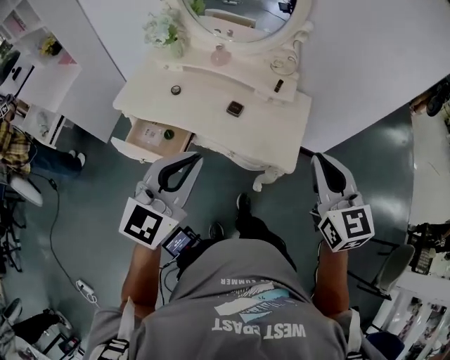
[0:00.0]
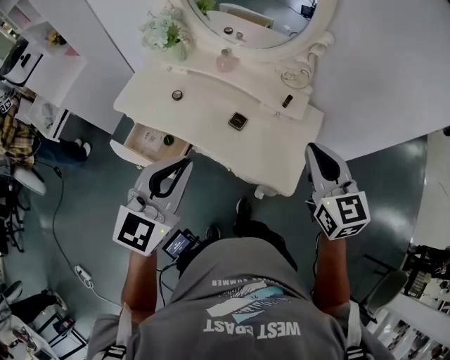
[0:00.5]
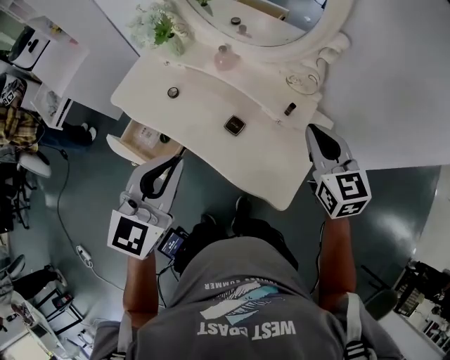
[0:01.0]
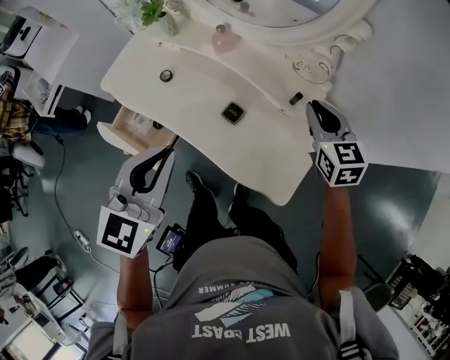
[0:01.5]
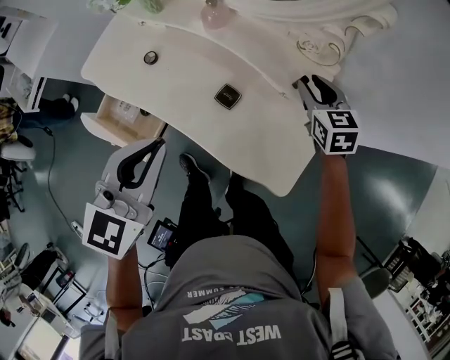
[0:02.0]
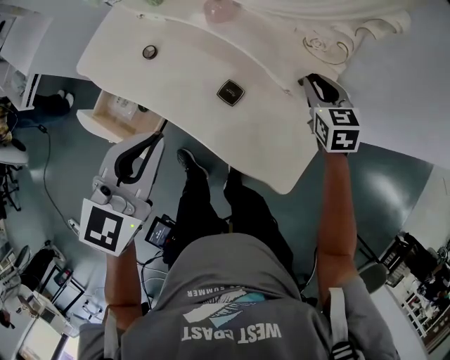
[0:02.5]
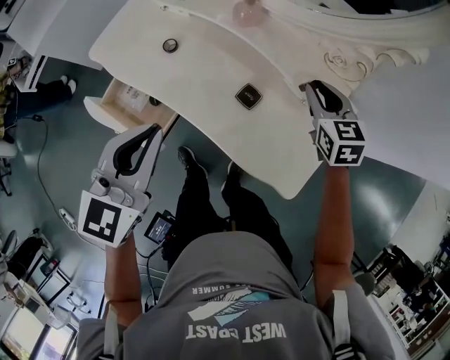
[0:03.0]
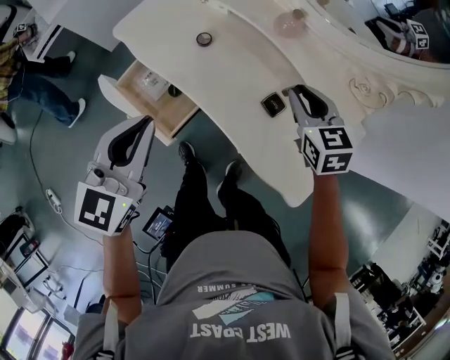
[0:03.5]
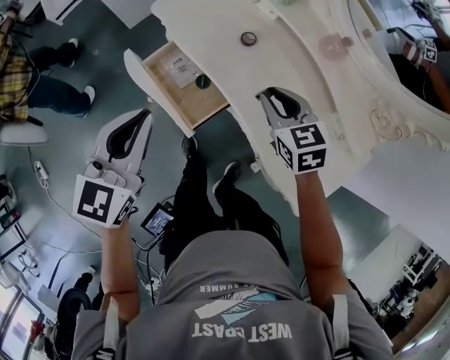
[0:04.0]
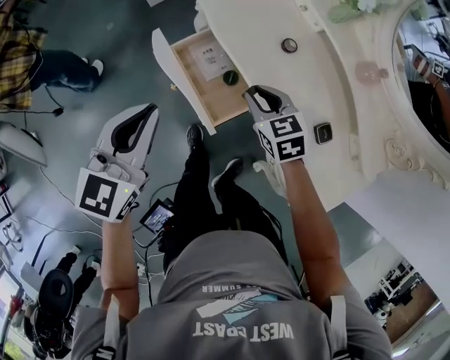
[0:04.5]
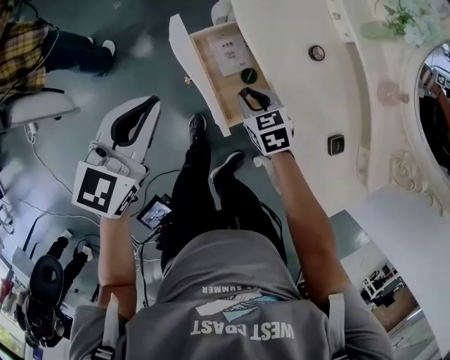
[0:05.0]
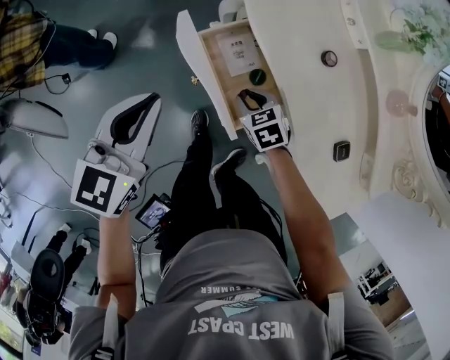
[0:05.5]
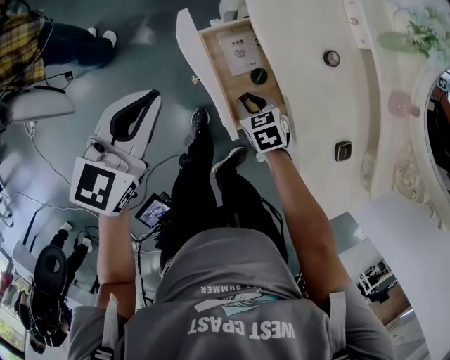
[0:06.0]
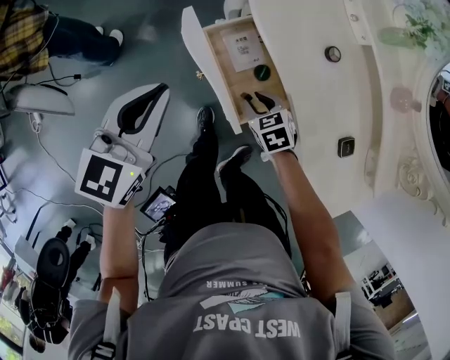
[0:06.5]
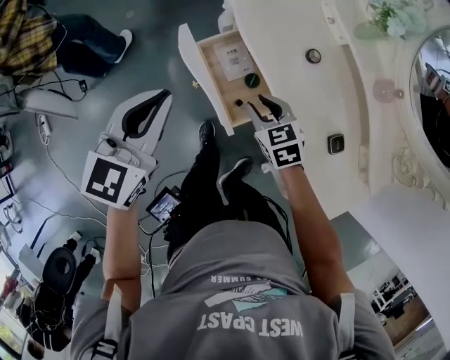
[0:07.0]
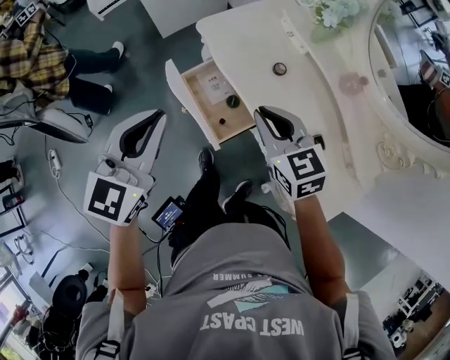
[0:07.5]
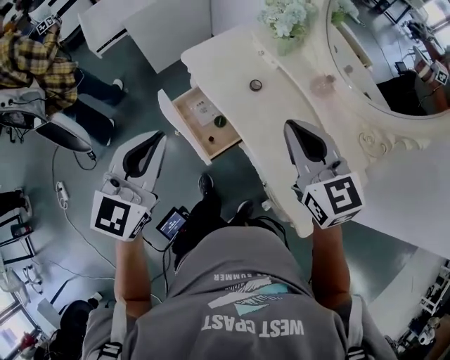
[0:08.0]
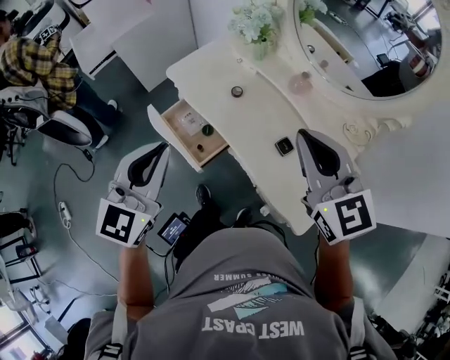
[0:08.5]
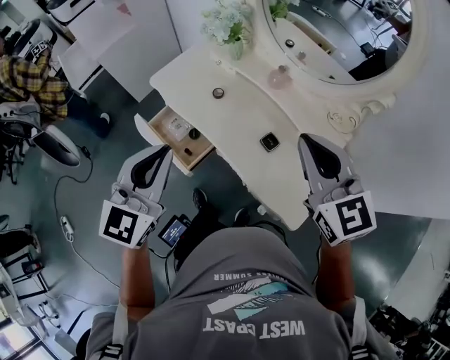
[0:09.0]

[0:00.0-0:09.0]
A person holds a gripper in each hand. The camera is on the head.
0:00.0 to 0:02.0: The left gripper travels forward and downward by some 25 cm, and swivels about 20 degrees. The right gripper moves forward and downward, about 50 cm, turns by roughly 20 degrees, and opens up.
0:02.0 to 0:04.5: The left gripper shifts by about 40 cm, and rotates some 40 degrees; the right gripper moves some 50 cm, and rotates approximately 40 degrees.
0:04.5 to 0:07.0: The right gripper moves to the left, approximately 5 cm, and moves roughly 15 cm downward and comes back.
0:07.0 to 0:09.0: The right gripper moves upward and to the right, some 50 cm, tilts its fingers some 40 degrees upward, and closes up; the left gripper travels to the right, upward and backward by about 30 cm, and swivels some 20 degrees.

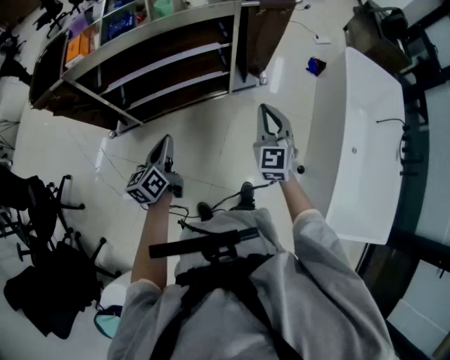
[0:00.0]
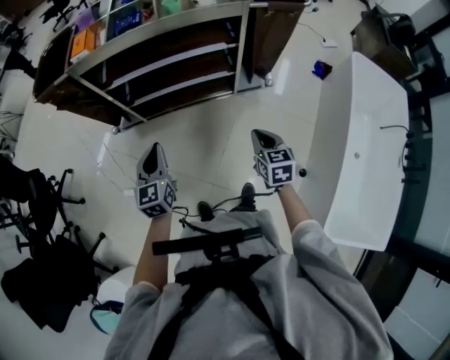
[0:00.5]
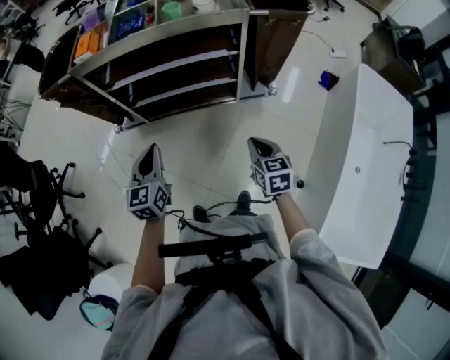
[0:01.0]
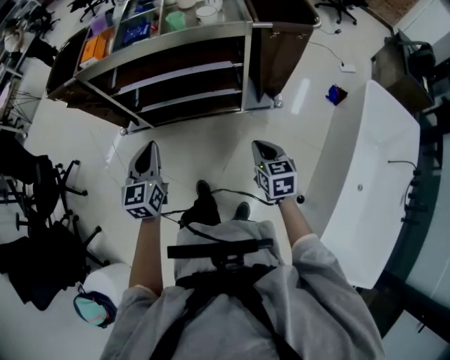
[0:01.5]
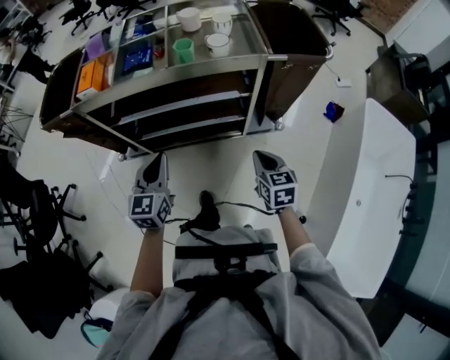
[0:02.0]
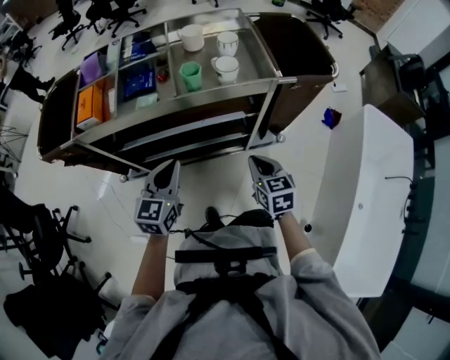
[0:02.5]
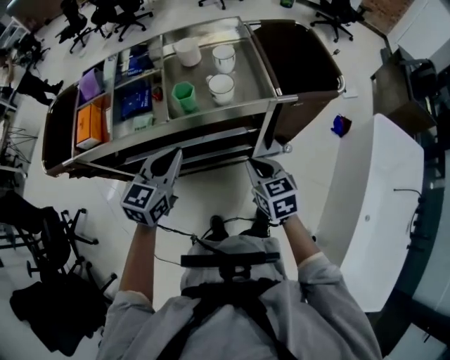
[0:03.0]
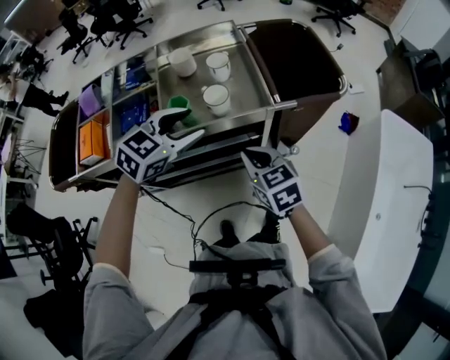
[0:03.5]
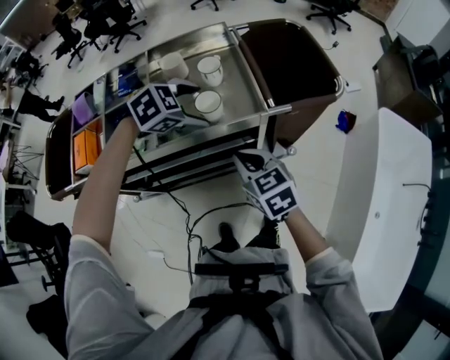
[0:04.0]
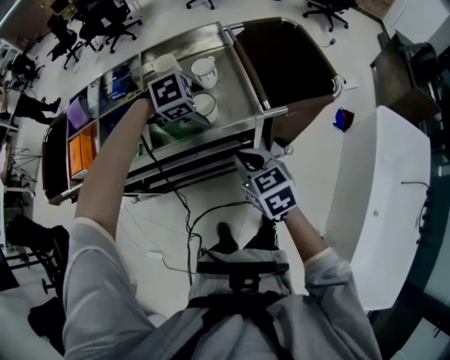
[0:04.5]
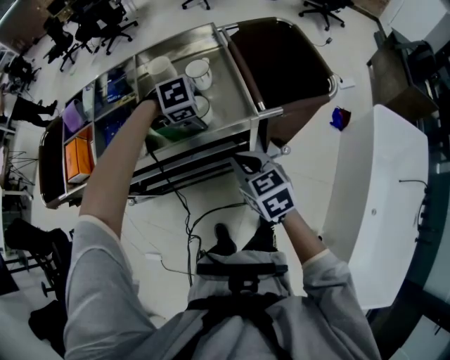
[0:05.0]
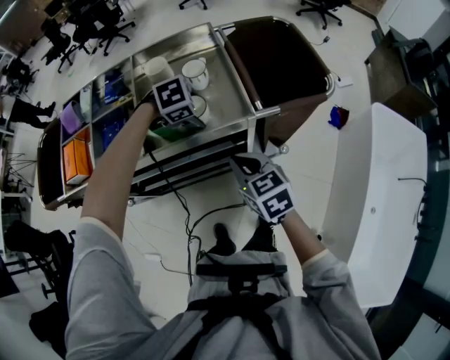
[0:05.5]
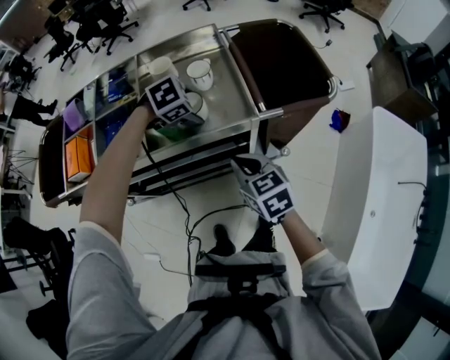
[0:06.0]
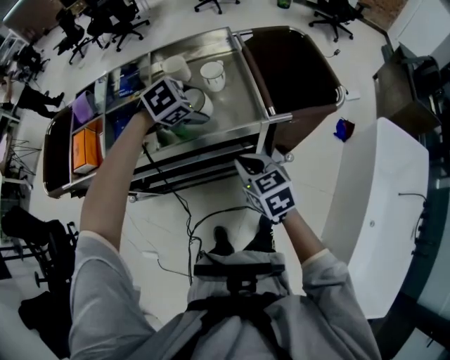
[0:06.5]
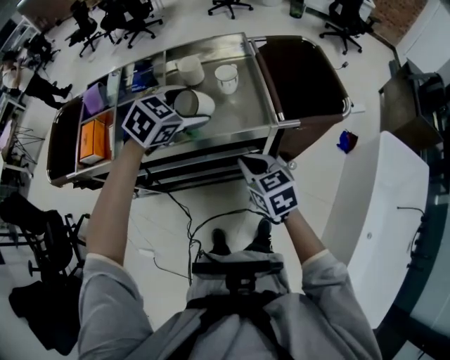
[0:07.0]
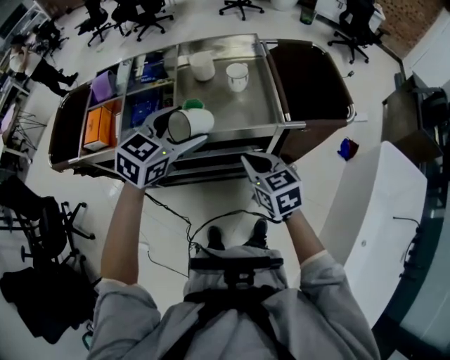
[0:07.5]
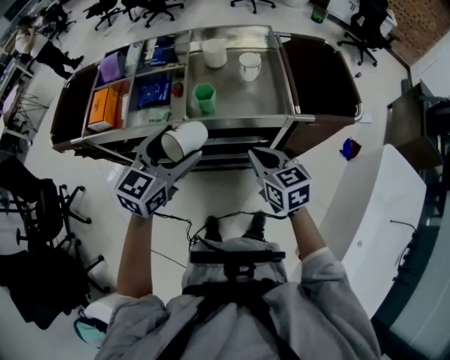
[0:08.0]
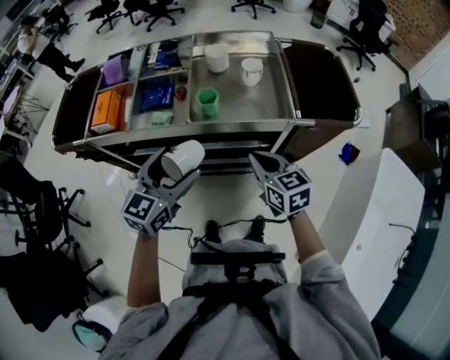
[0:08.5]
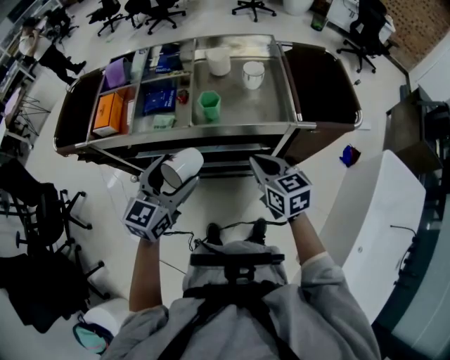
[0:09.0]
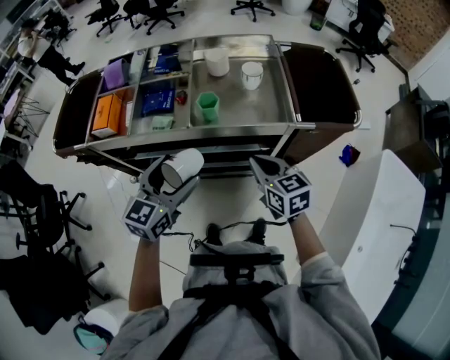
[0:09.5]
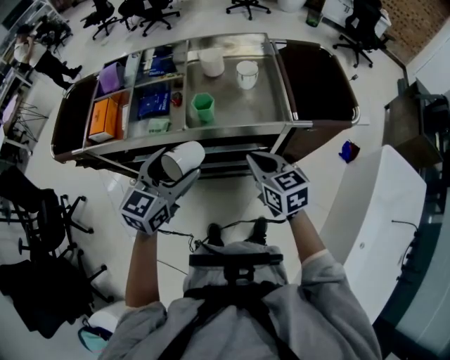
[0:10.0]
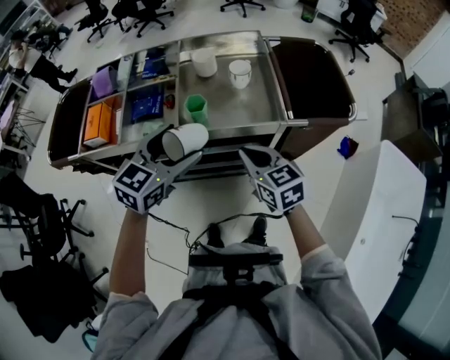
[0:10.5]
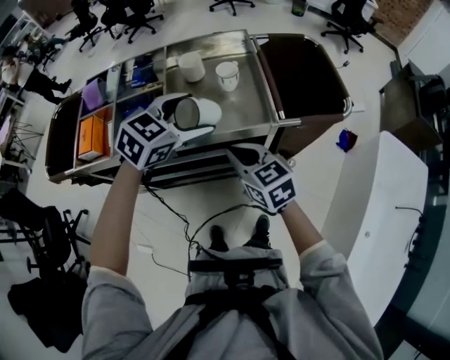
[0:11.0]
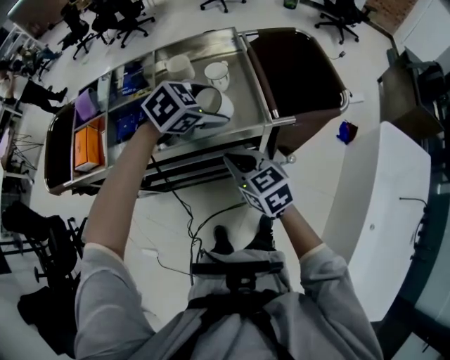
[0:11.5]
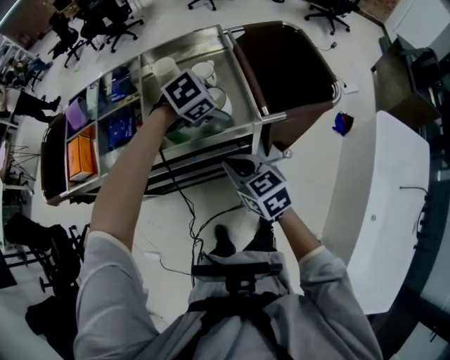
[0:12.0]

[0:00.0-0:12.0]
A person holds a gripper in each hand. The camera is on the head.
0:00.0 to 0:02.0: The left gripper heads forward and upward, covering roughly 15 cm, and changes its angle by about 30 degrees. Meanwhile the right gripper goes about 15 cm forward and downward, and rotates roughly 40 degrees.
0:02.0 to 0:04.0: The left gripper heads forward, covering some 35 cm, points its fingers some 40 degrees further downward, and opens its fingers; the right gripper heads forward and upward, covering some 25 cm.
0:04.0 to 0:06.0: The left gripper heads downward, covering roughly 5 cm.
0:06.0 to 0:08.0: The left gripper heads backward, upward and to the left, covering some 25 cm, and points its fingers roughly 50 degrees further upward.
0:10.0 to 0:12.0: The left gripper is displaced forward and to the right by roughly 30 cm, and tips its fingers downward by about 50 degrees.

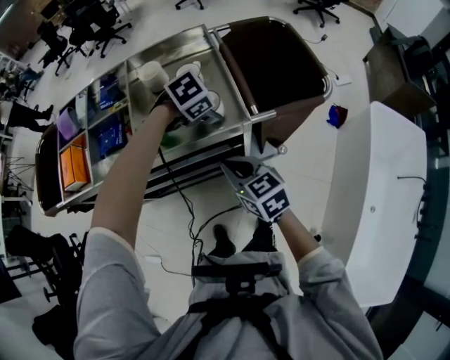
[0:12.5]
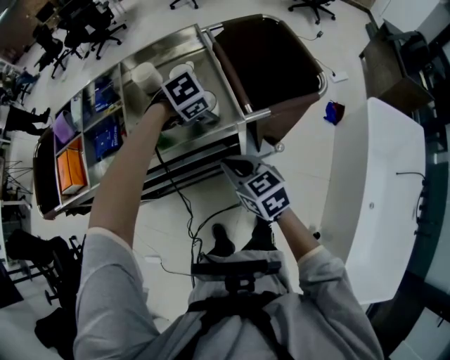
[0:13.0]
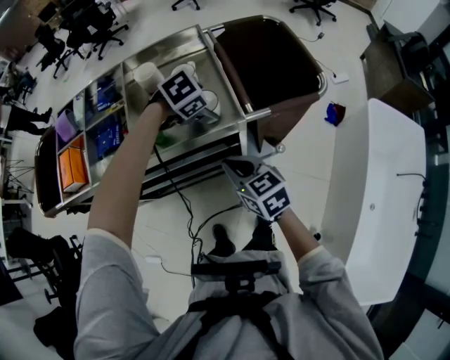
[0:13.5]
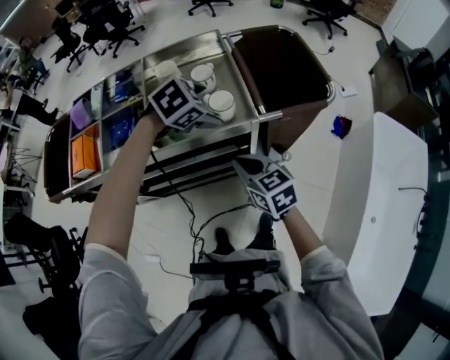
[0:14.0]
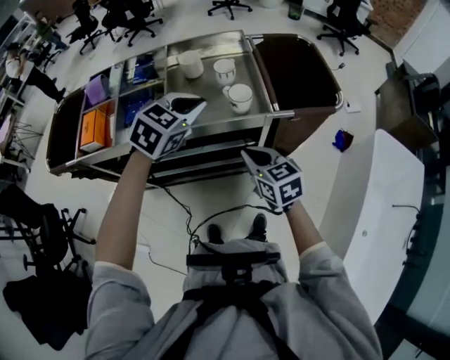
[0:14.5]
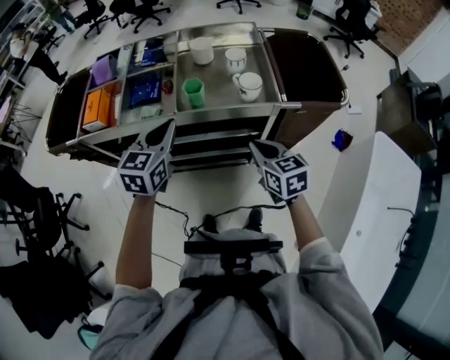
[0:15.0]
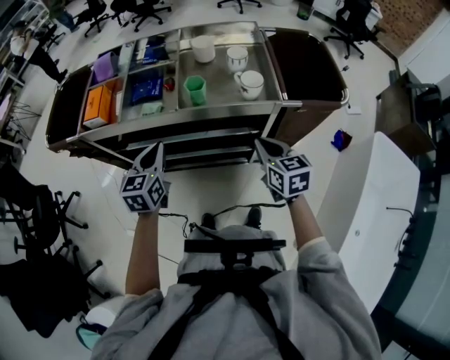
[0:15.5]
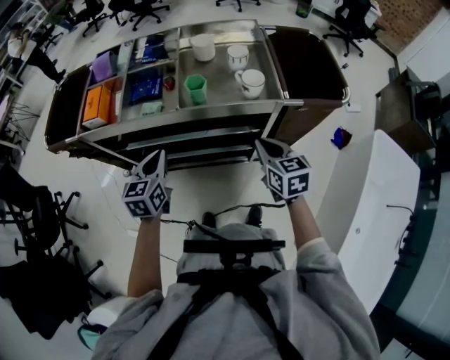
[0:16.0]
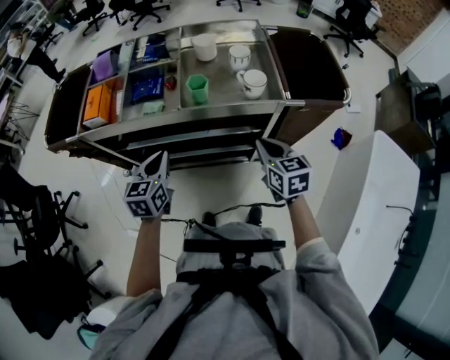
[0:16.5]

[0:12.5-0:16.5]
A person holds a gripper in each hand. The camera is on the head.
0:12.5 to 0:14.5: The left gripper shifts approximately 20 cm upward, backward and to the left, points its fingers about 30 degrees further upward, and closes its fingers.
0:14.5 to 0:16.5: The left gripper moves to the left, downward and backward, some 25 cm, and turns by approximately 50 degrees.

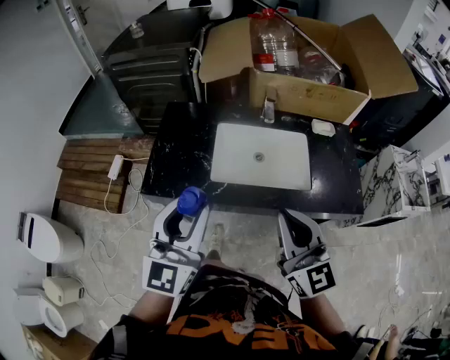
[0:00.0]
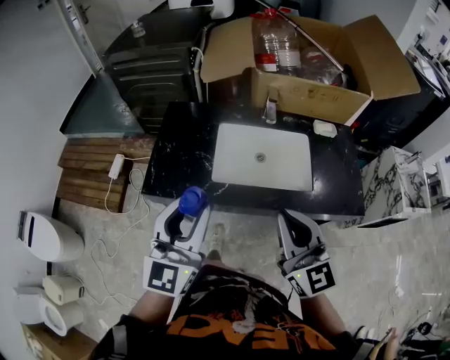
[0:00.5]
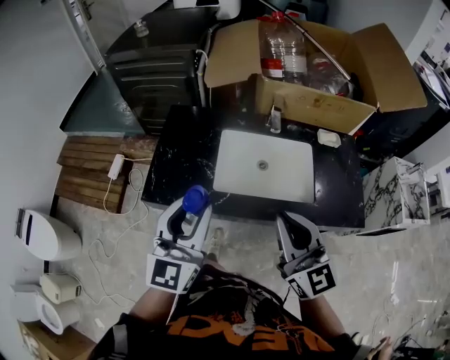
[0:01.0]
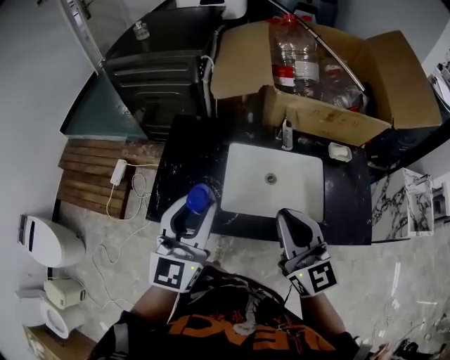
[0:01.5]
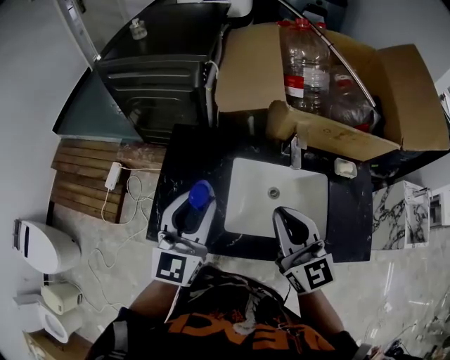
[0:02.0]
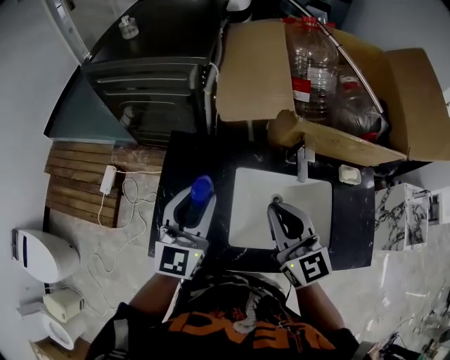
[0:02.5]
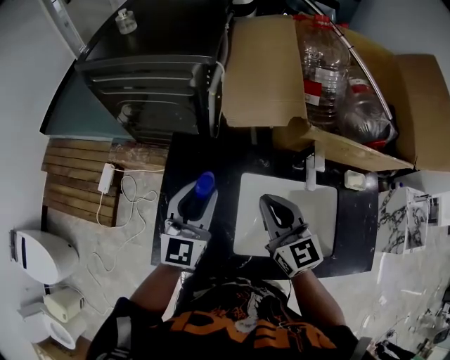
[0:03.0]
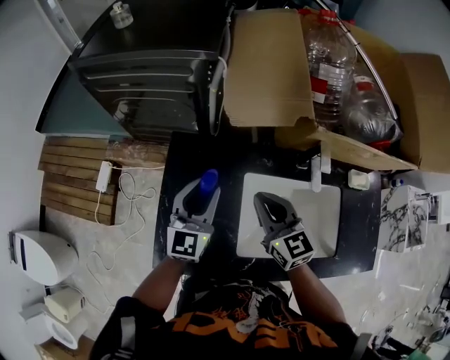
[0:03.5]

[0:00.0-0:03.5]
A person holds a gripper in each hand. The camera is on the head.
0:00.0 to 0:02.0: Both grippers travel together forward, approximately 25 cm.
0:02.0 to 0:03.5: Both grippers travel together forward and downward, about 20 cm.
